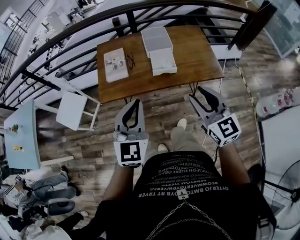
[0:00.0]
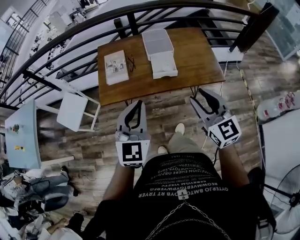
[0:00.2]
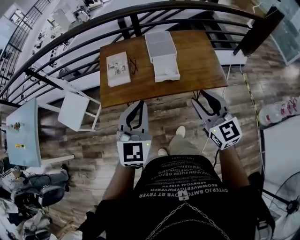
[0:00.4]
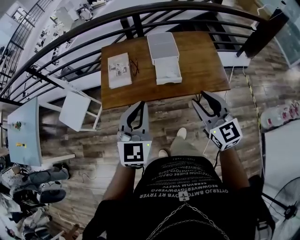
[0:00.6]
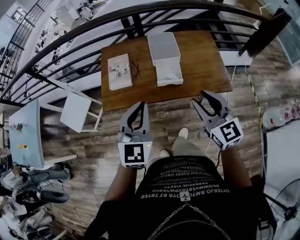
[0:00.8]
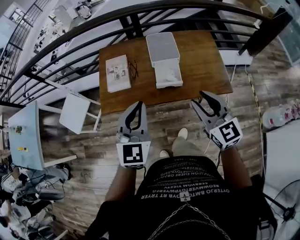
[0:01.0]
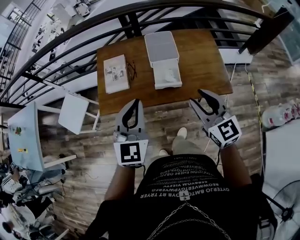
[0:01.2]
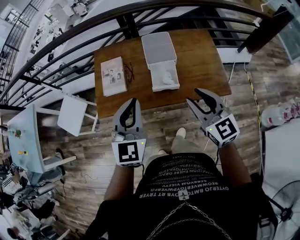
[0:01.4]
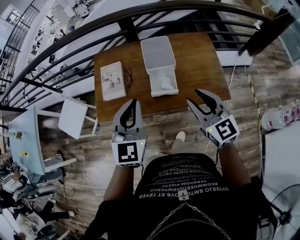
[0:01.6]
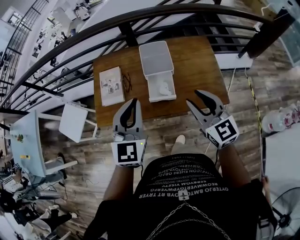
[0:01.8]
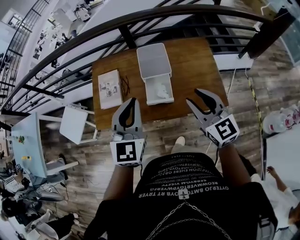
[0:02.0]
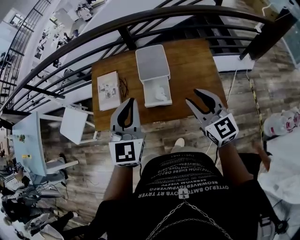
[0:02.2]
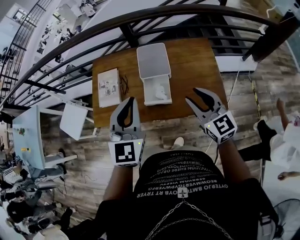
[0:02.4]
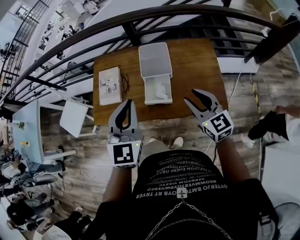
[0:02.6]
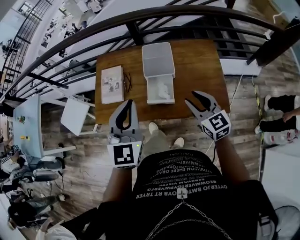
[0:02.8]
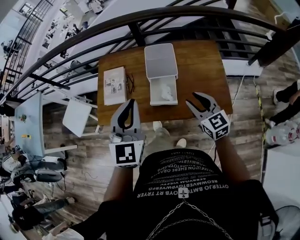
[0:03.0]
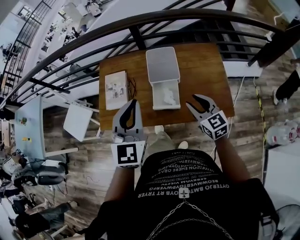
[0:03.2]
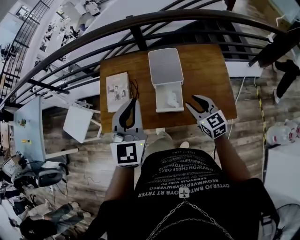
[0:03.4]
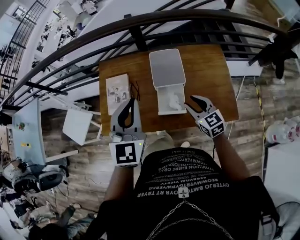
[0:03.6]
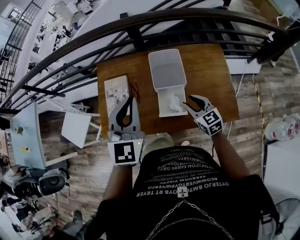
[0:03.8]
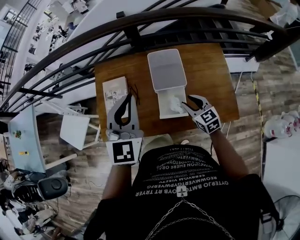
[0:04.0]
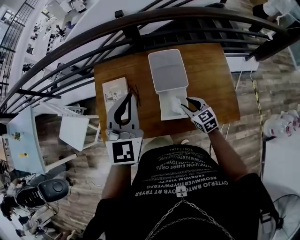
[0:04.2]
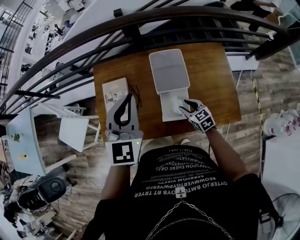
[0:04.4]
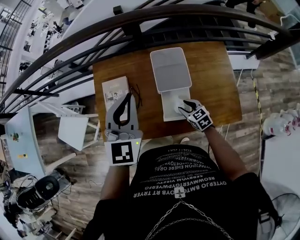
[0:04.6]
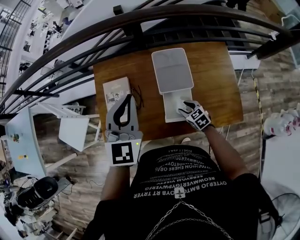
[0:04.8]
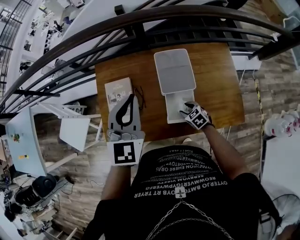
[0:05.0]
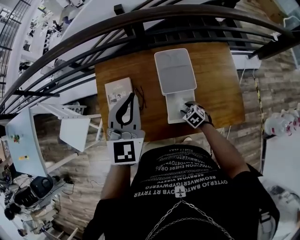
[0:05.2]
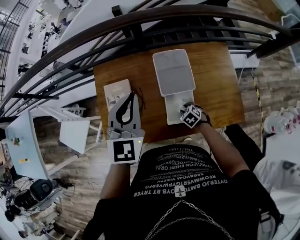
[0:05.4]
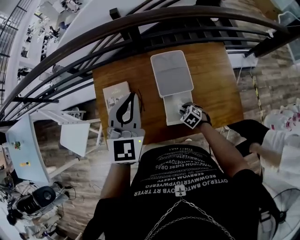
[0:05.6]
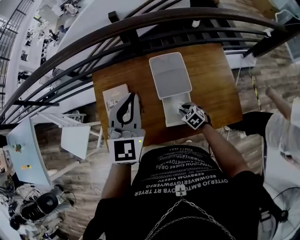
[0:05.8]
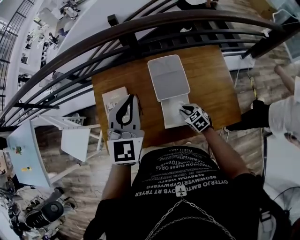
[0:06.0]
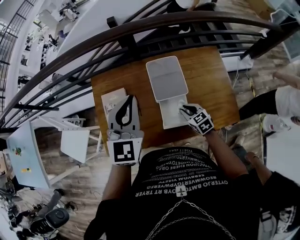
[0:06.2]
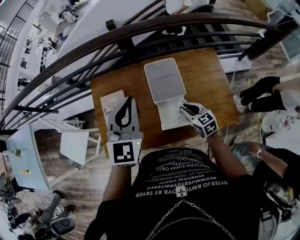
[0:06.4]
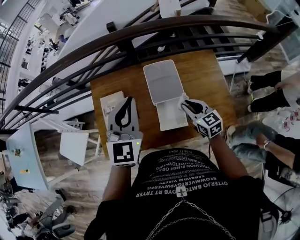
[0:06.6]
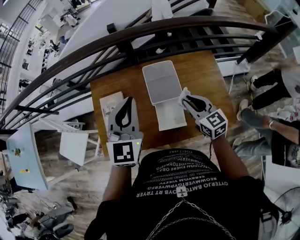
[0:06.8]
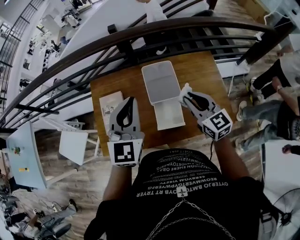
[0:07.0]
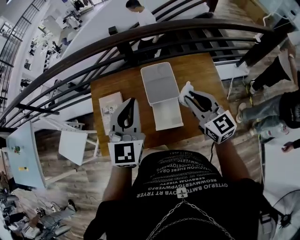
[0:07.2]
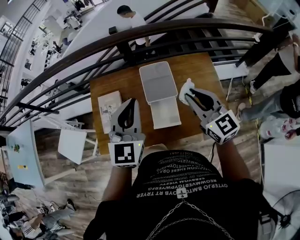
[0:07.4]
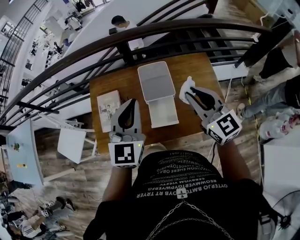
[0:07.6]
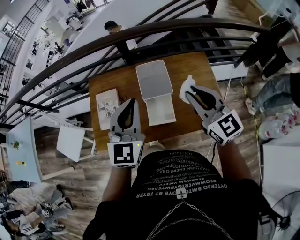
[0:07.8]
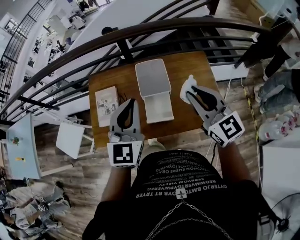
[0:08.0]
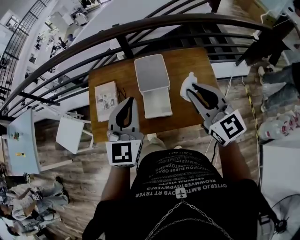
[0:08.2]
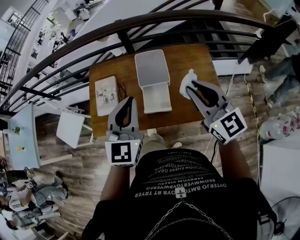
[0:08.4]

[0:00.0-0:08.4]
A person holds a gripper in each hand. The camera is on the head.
0:00.0 to 0:01.4: The two grippers go approximately 20 cm forward.
0:01.4 to 0:02.8: The right gripper travels to the right, forward and downward by roughly 15 cm. Meanwhile the left gripper shifts some 10 cm to the right and forward.
0:02.8 to 0:04.2: The left gripper moves forward, approximately 20 cm, while the right gripper heads downward, forward and to the left, covering approximately 25 cm.
0:04.2 to 0:05.6: The right gripper goes about 15 cm downward, and tilts its fingers some 30 degrees downward, while the left gripper goes some 5 cm forward.
0:05.6 to 0:07.0: The left gripper goes some 5 cm to the right and backward. The right gripper travels upward by about 35 cm, and tilts its fingers roughly 50 degrees upward.
0:07.0 to 0:08.4: The left gripper goes roughly 15 cm backward and to the right, while the right gripper heads backward, upward and to the right, covering approximately 20 cm.

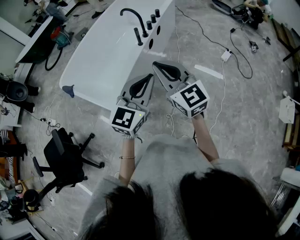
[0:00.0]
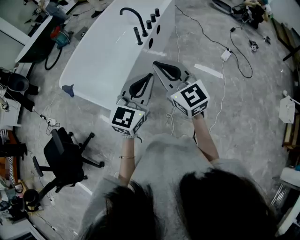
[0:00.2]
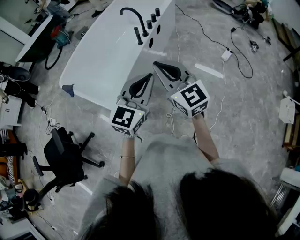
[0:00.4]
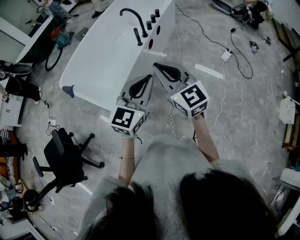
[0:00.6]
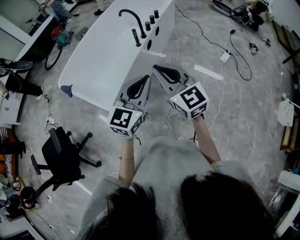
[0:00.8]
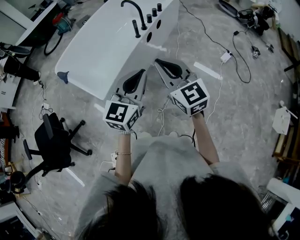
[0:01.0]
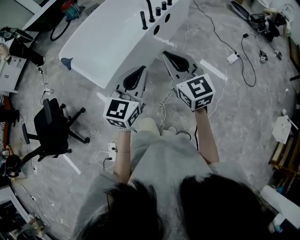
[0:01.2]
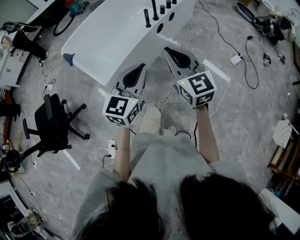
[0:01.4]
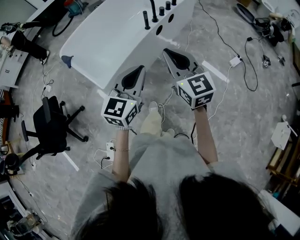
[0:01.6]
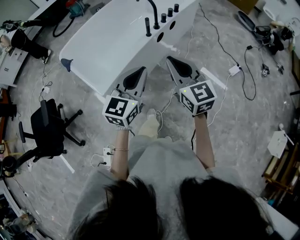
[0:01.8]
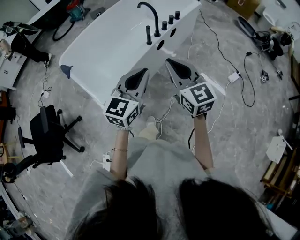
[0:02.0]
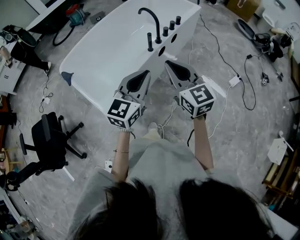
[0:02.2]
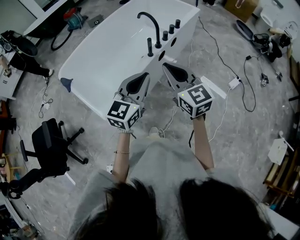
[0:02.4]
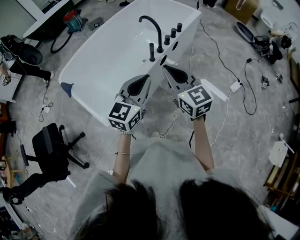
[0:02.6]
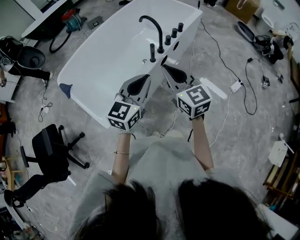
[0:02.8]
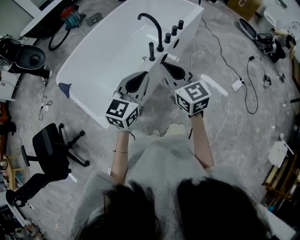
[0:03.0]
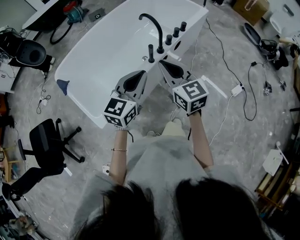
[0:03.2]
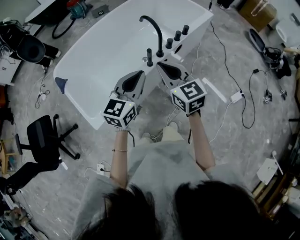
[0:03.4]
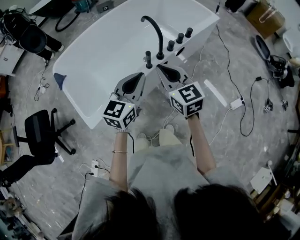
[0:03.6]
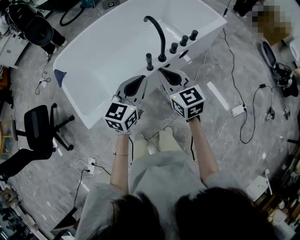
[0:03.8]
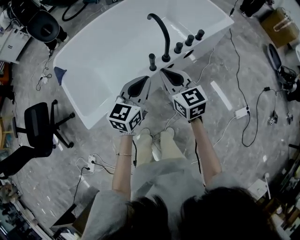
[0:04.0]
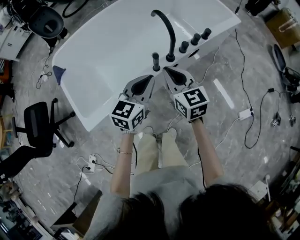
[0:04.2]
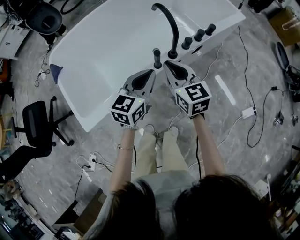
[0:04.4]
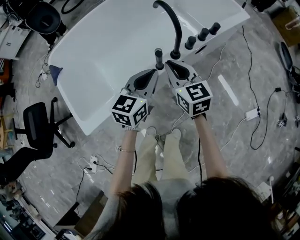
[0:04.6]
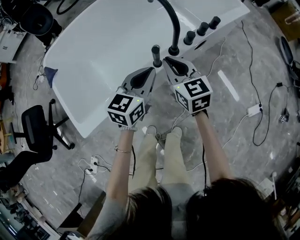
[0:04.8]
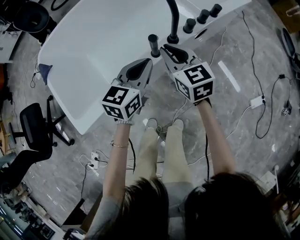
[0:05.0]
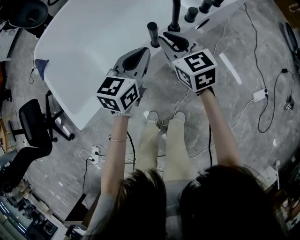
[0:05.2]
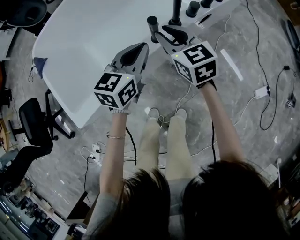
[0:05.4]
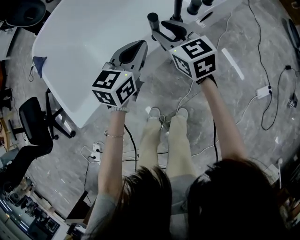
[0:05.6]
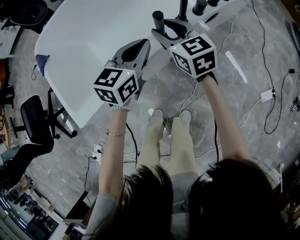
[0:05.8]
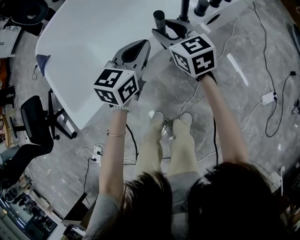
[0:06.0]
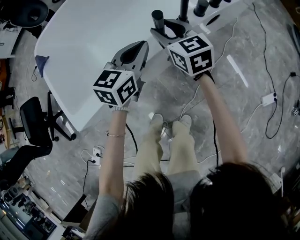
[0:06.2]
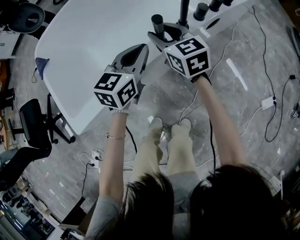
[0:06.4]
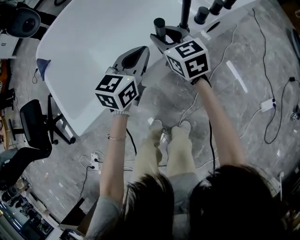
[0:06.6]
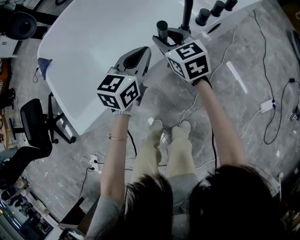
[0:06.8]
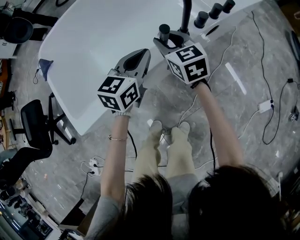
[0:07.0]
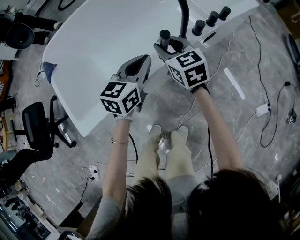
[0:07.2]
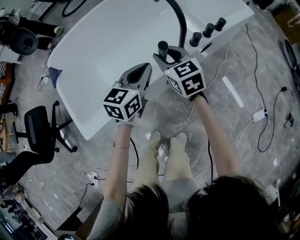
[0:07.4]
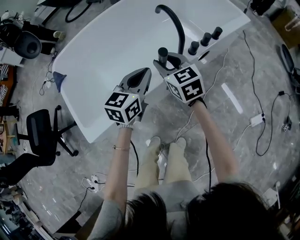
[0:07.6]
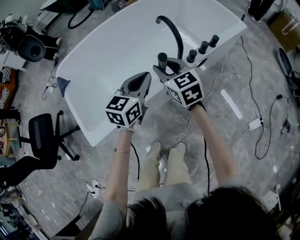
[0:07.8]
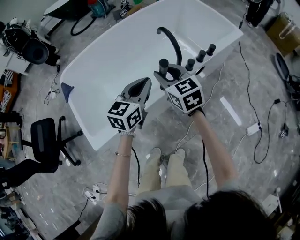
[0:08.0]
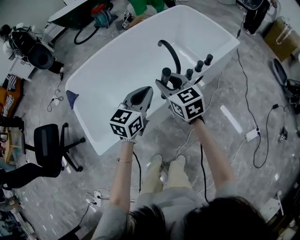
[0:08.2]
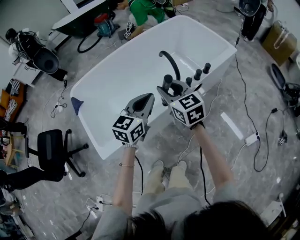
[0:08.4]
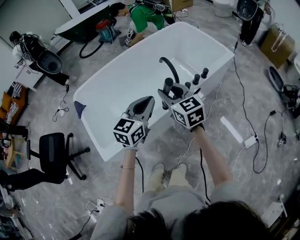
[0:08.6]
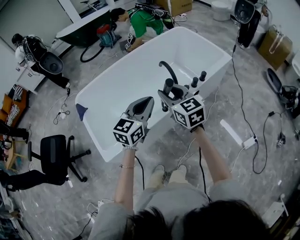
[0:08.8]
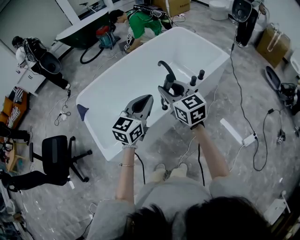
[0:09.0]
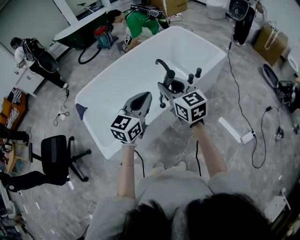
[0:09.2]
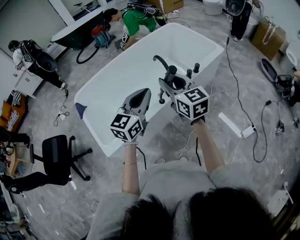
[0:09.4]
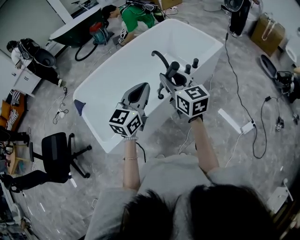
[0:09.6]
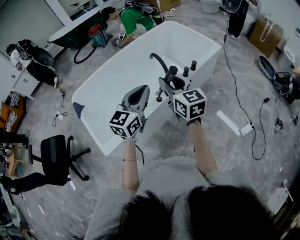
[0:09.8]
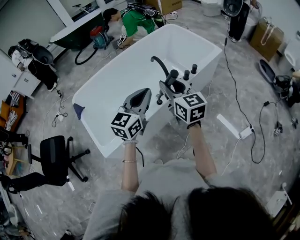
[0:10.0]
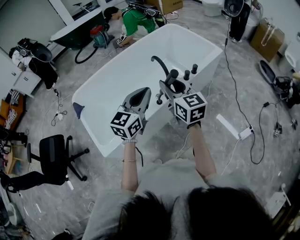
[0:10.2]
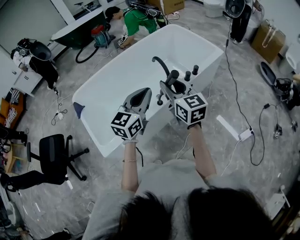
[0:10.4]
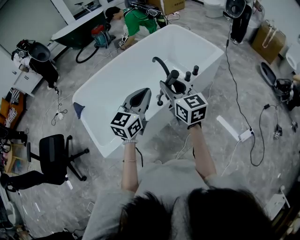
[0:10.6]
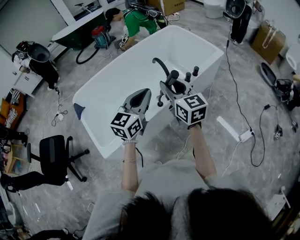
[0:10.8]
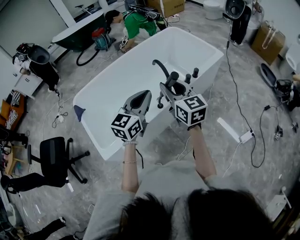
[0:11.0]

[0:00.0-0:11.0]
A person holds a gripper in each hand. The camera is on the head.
0:00.0 to 0:01.6: The right gripper is displaced to the right by about 5 cm.
0:01.6 to 0:03.2: Both grippers move forward, approximately 25 cm.
0:03.2 to 0:04.8: The two grippers go about 30 cm downward and forward. The left gripper swivels some 20 degrees.
0:04.8 to 0:06.2: The left gripper is displaced downward by about 10 cm. The right gripper goes approximately 10 cm downward and forward, and opens up.
0:06.2 to 0:07.8: The grippers both shift upward by roughly 15 cm.
0:07.8 to 0:09.4: The two grippers go roughly 25 cm upward and backward.
0:09.4 to 0:11.0: The grippers stay close to where they were, moving slightly.

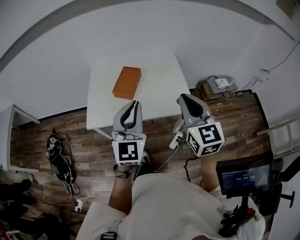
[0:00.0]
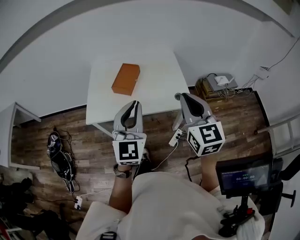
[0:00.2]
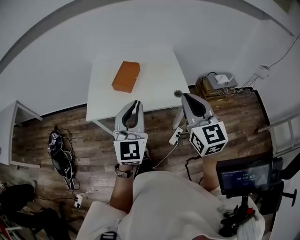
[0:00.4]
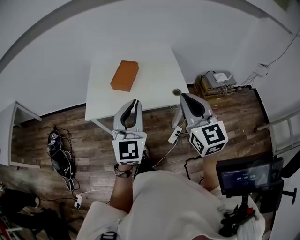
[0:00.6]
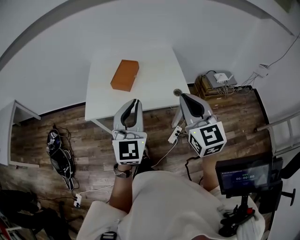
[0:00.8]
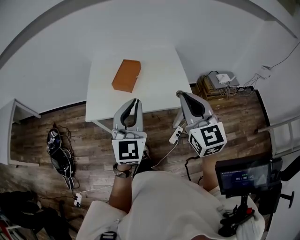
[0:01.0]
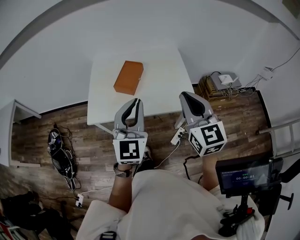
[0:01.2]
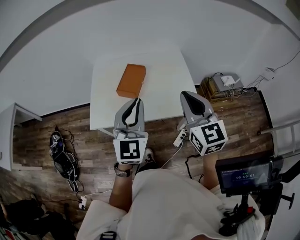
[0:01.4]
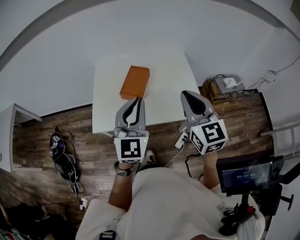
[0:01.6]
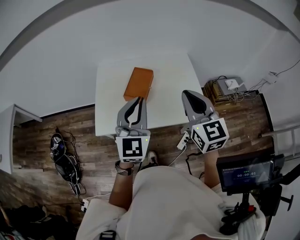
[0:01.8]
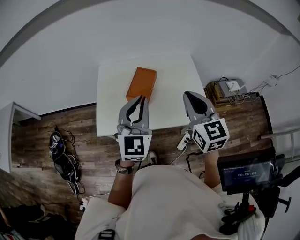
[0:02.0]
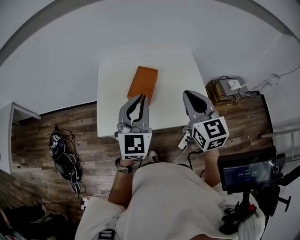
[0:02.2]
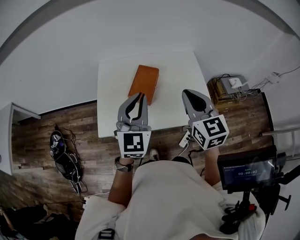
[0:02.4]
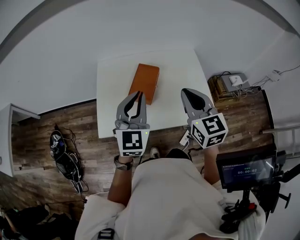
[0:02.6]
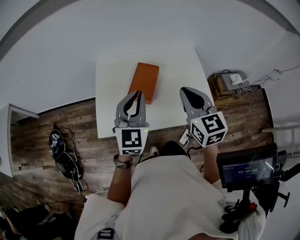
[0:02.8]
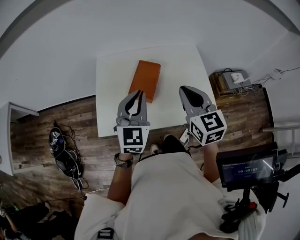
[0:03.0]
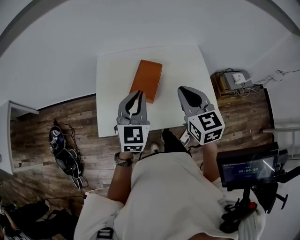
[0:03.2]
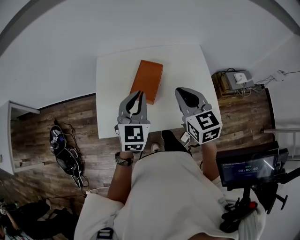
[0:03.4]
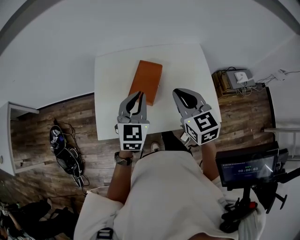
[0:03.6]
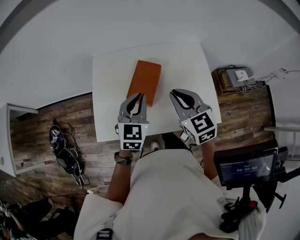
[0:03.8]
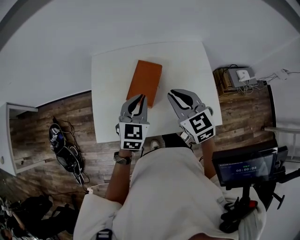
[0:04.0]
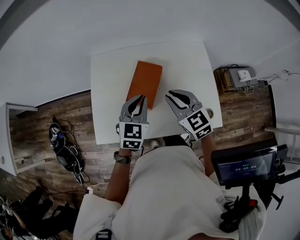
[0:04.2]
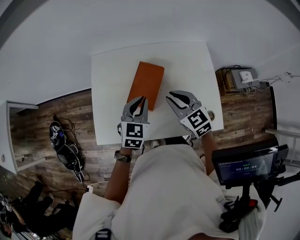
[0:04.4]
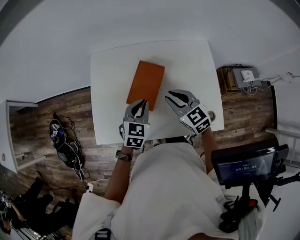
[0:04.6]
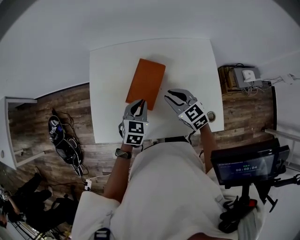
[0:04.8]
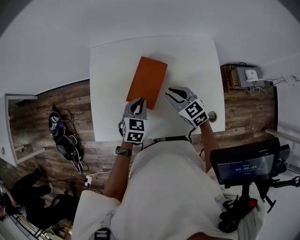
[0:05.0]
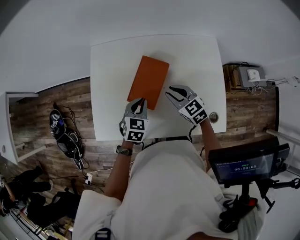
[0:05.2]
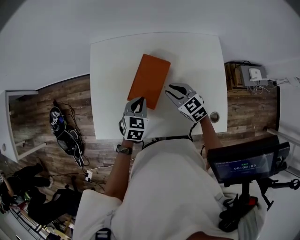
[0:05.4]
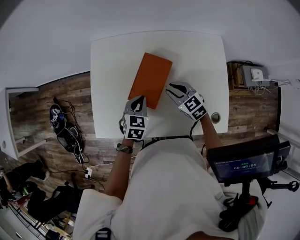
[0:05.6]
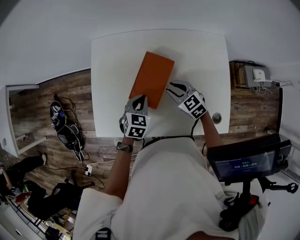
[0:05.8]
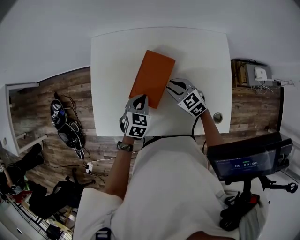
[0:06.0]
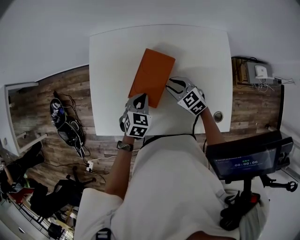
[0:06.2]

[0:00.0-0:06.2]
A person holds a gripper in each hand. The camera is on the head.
0:00.0 to 0:01.6: The two grippers go about 10 cm forward and to the left.
0:01.6 to 0:03.2: Both grippers travel together forward, downward and to the left, about 15 cm.
0:03.2 to 0:04.6: The two grippers go roughly 20 cm downward and forward. The left gripper rotates some 20 degrees; the right gripper turns by about 20 degrees.
0:04.6 to 0:06.2: The grippers both shift downward by about 15 cm.
